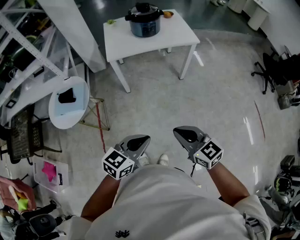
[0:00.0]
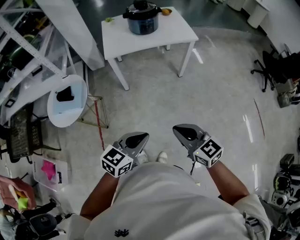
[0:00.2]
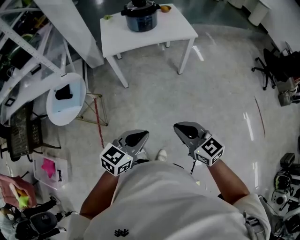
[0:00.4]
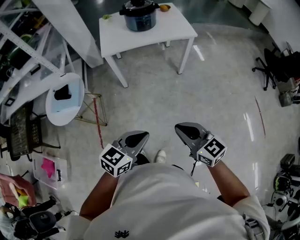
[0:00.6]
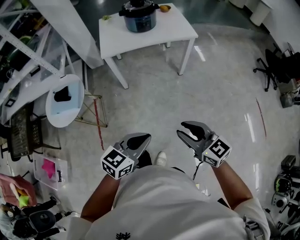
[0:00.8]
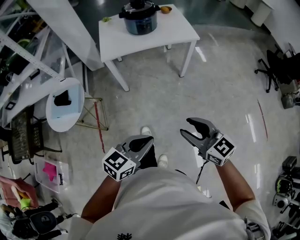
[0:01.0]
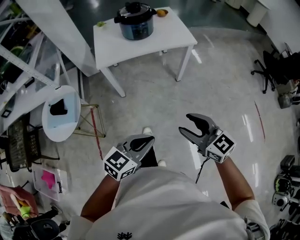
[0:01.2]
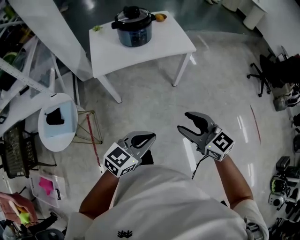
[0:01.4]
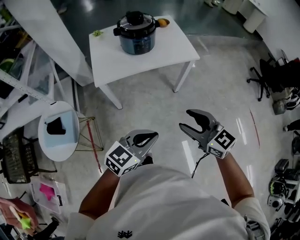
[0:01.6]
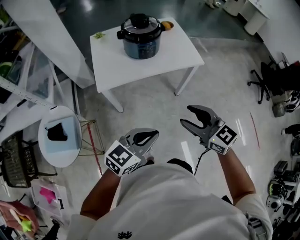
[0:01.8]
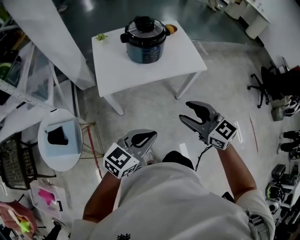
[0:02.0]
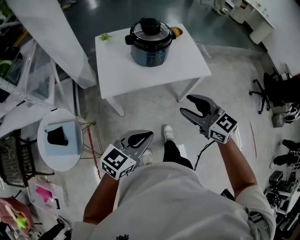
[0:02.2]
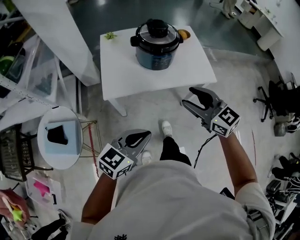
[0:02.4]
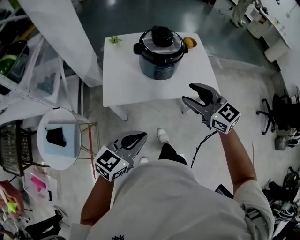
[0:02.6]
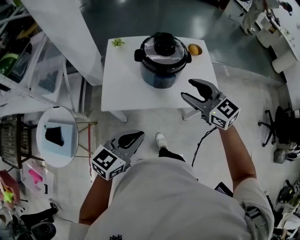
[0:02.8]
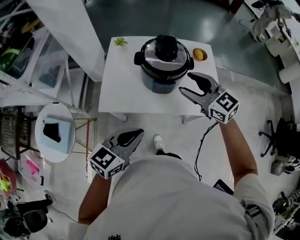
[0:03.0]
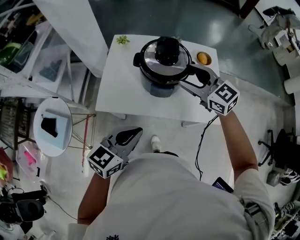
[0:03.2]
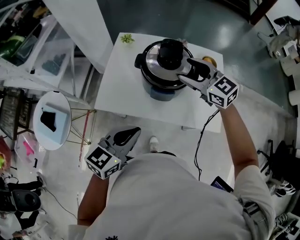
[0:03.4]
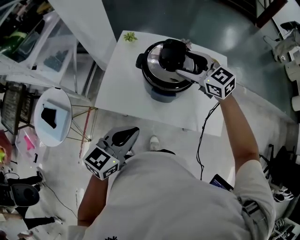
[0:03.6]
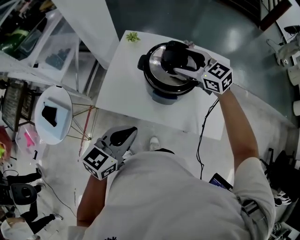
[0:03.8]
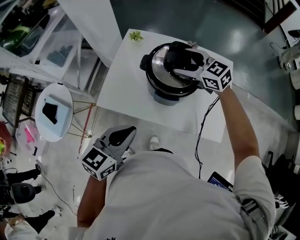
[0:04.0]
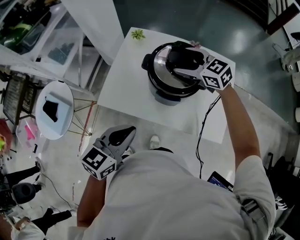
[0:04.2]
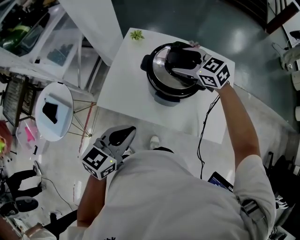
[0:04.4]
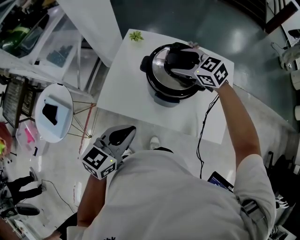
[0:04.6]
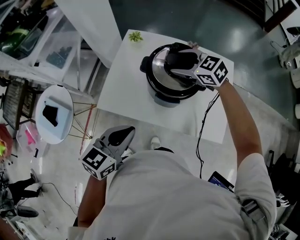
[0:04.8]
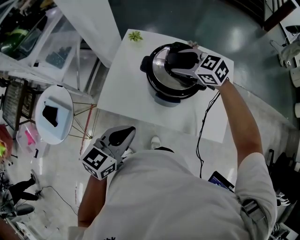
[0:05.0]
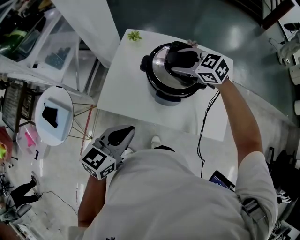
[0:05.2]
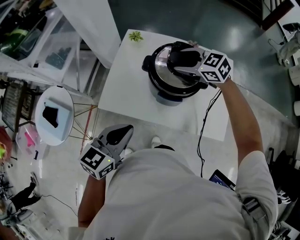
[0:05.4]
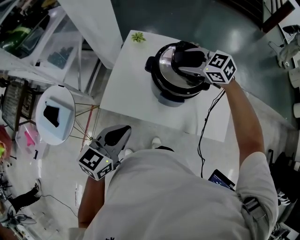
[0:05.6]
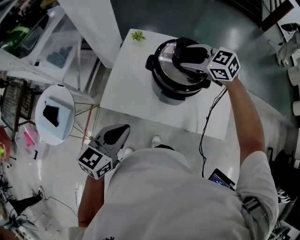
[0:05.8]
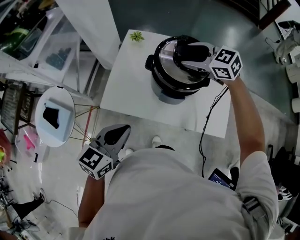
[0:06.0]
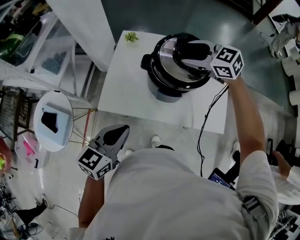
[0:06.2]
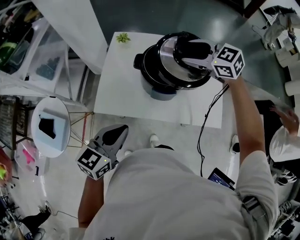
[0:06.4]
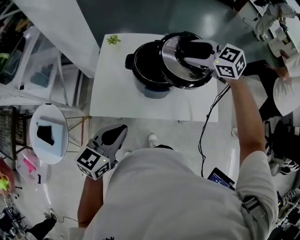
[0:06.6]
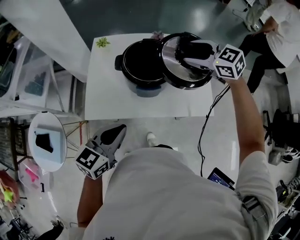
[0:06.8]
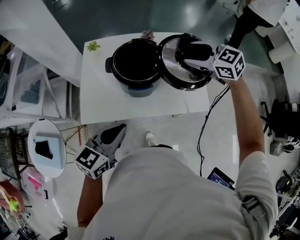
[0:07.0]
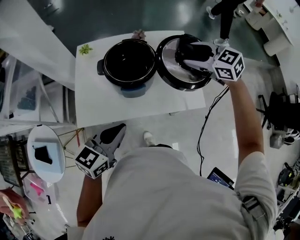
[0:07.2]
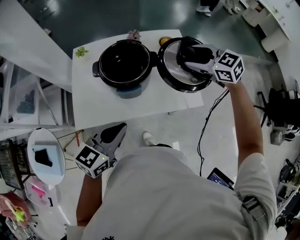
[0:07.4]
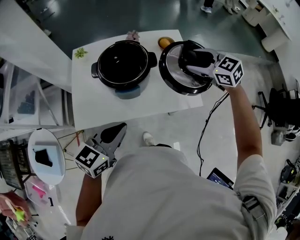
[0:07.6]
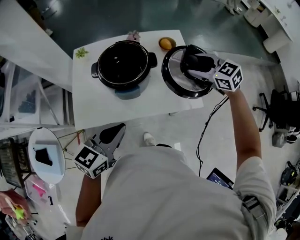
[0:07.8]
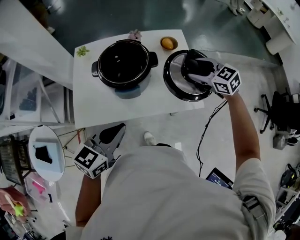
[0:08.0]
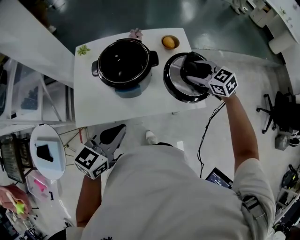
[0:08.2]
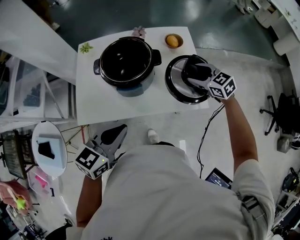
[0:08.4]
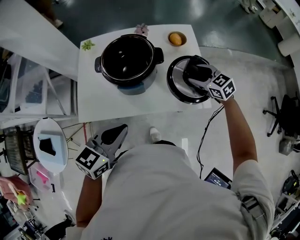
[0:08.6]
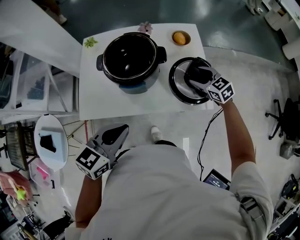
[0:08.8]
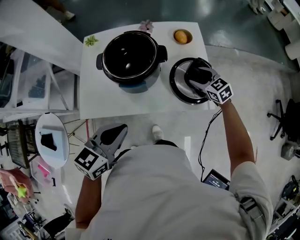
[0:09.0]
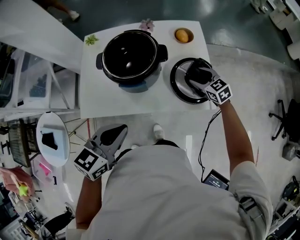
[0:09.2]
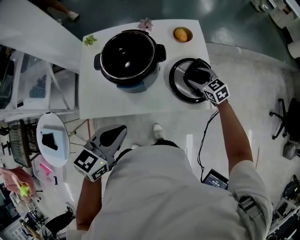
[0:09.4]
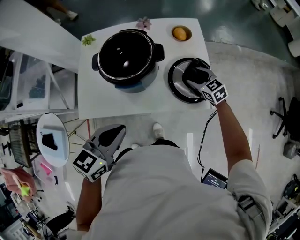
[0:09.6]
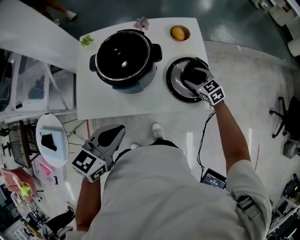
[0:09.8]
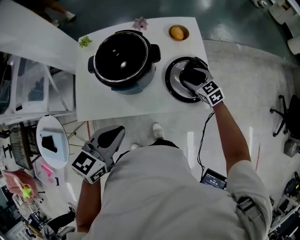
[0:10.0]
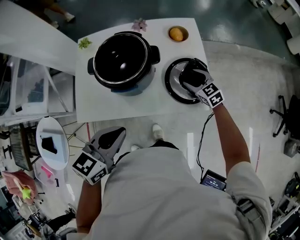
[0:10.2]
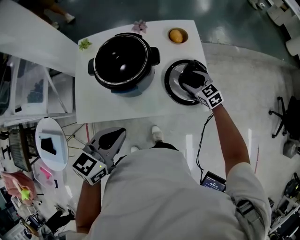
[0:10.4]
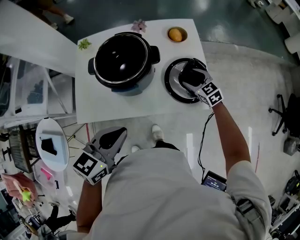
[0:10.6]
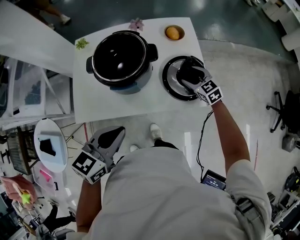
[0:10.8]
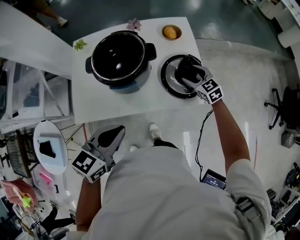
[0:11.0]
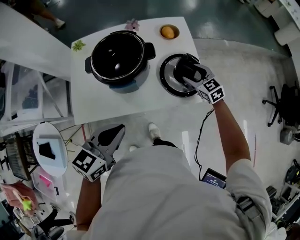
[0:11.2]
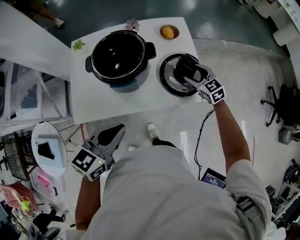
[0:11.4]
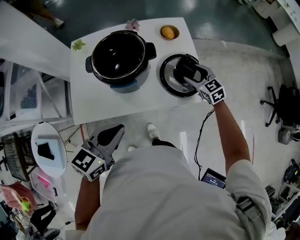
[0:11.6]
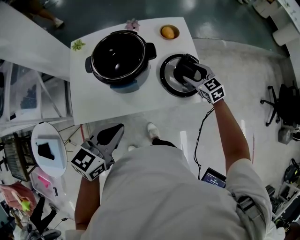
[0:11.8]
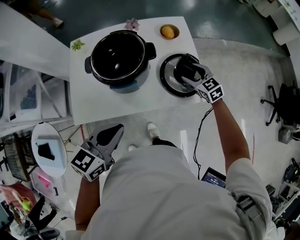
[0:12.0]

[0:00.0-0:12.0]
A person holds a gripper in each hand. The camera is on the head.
0:00.0 to 0:01.6: The grippers both shift forward by roughly 25 cm. The right gripper opens up.
0:01.6 to 0:03.0: Both grippers travel together forward, some 40 cm. The right gripper changes its angle by some 20 degrees. The left gripper rotates roughly 30 degrees.
0:03.0 to 0:04.4: The right gripper heads forward, covering approximately 20 cm, and turns by about 20 degrees. Meanwhile the left gripper shifts approximately 10 cm forward.
0:04.4 to 0:06.0: The left gripper is displaced to the left by approximately 5 cm.
0:06.0 to 0:07.6: The left gripper moves roughly 10 cm, and turns by roughly 30 degrees. Meanwhile the right gripper moves roughly 30 cm, and turns by about 30 degrees.
0:07.6 to 0:09.0: The right gripper moves downward, approximately 20 cm.
0:09.0 to 0:10.4: The right gripper travels downward by about 5 cm.
0:10.4 to 0:12.0: The grippers stay close to where they were, moving slightly.

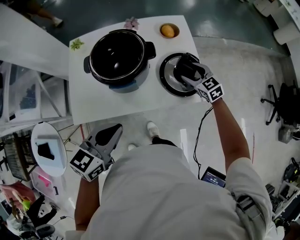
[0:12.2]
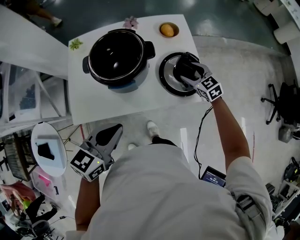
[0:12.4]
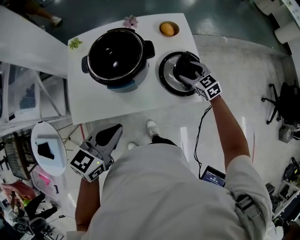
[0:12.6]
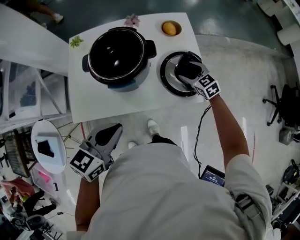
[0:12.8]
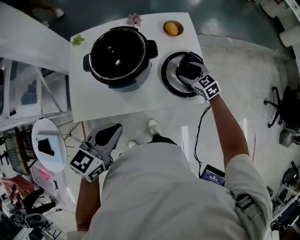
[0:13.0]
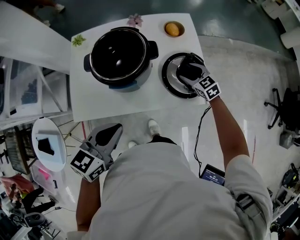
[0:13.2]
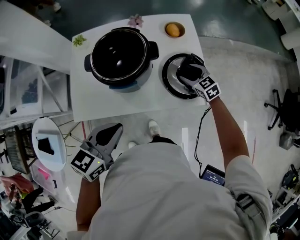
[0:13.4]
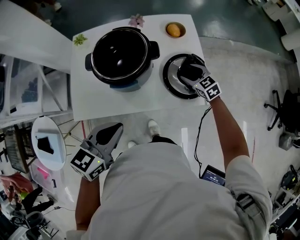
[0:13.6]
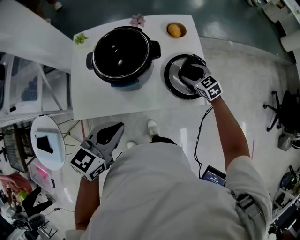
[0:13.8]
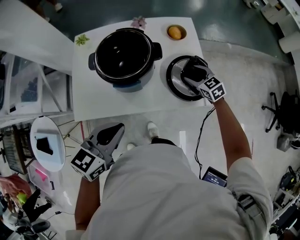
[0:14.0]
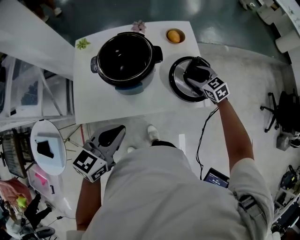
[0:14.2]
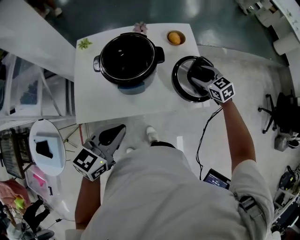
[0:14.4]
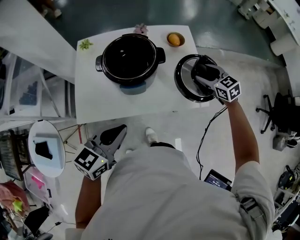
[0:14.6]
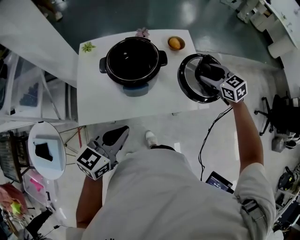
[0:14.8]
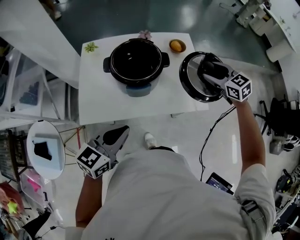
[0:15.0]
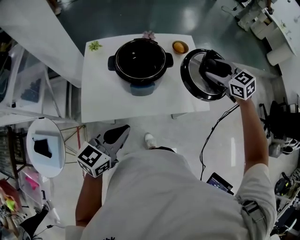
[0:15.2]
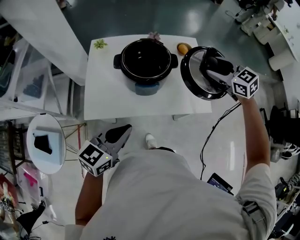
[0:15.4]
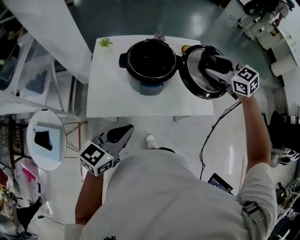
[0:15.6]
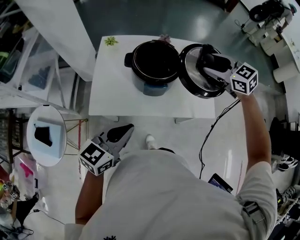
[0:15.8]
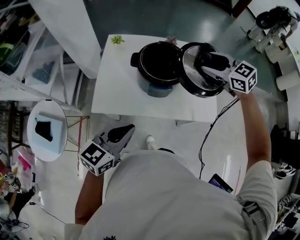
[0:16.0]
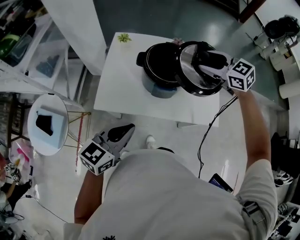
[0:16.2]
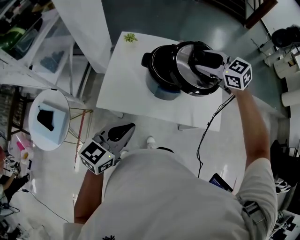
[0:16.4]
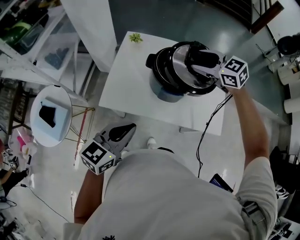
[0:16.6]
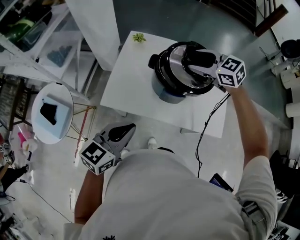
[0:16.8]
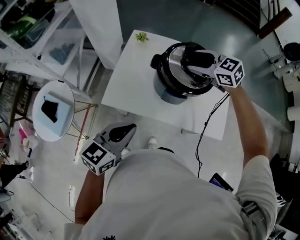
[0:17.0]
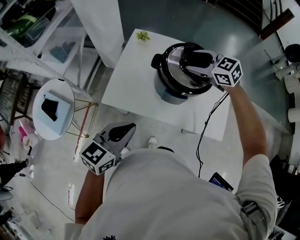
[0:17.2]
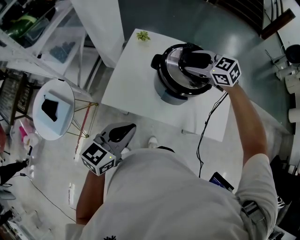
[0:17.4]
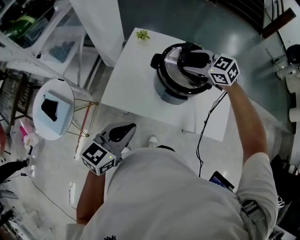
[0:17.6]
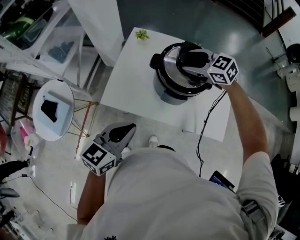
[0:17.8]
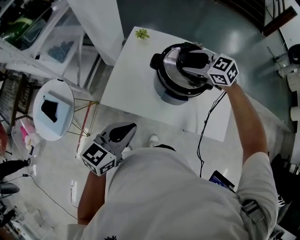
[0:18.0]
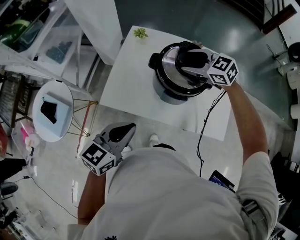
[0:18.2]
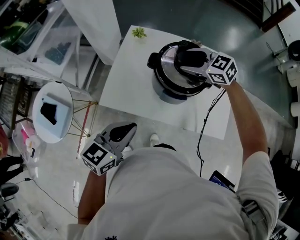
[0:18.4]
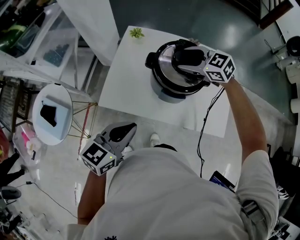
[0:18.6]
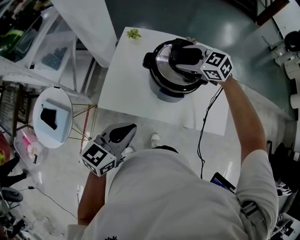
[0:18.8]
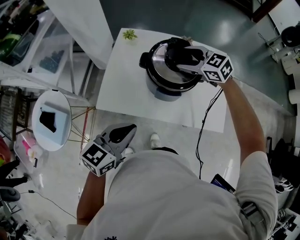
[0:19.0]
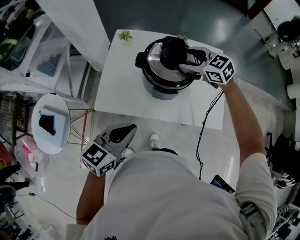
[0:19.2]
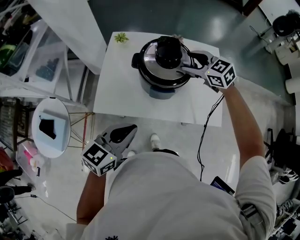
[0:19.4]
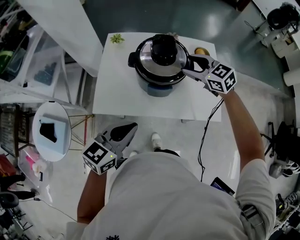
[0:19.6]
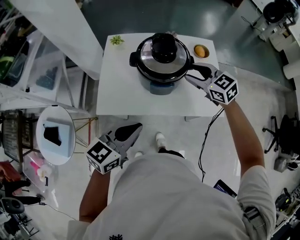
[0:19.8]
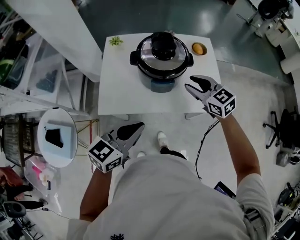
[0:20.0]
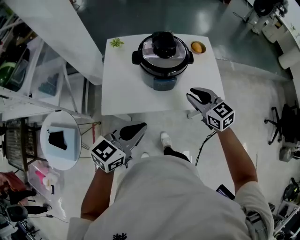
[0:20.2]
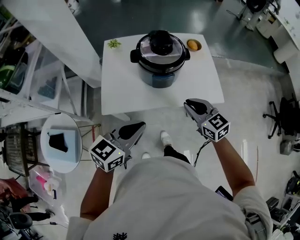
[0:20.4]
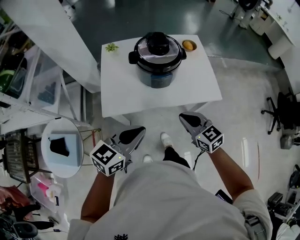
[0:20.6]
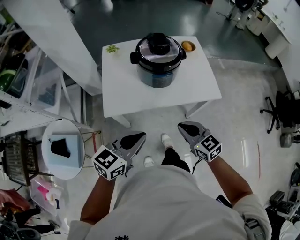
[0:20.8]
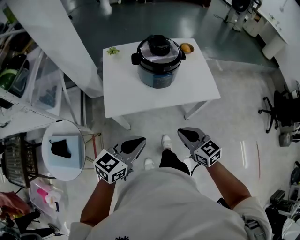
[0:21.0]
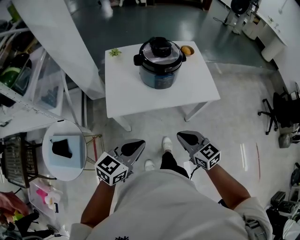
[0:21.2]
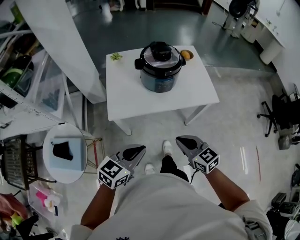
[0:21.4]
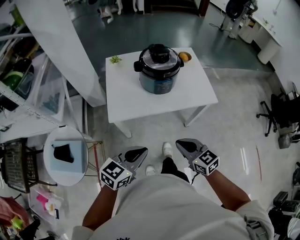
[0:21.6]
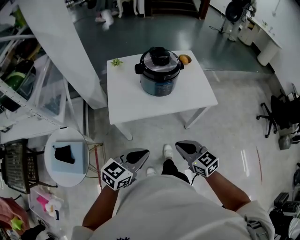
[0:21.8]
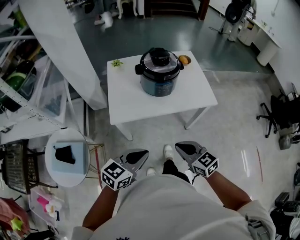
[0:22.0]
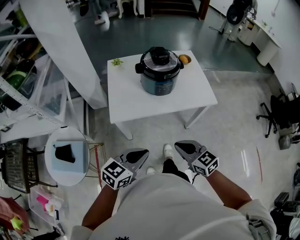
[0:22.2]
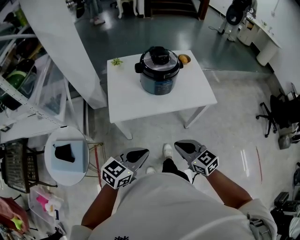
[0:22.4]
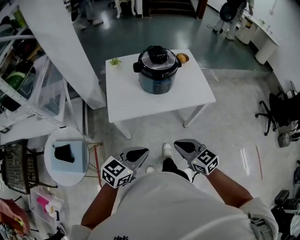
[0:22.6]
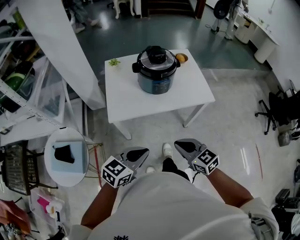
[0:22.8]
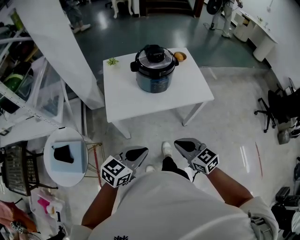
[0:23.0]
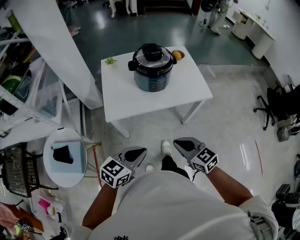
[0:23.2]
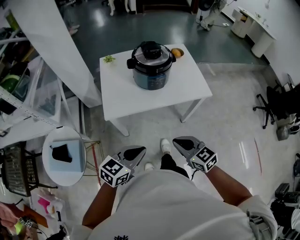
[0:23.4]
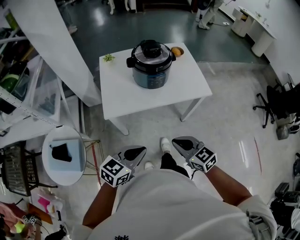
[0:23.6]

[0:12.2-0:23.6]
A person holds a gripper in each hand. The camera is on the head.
0:12.2 to 0:13.6: The grippers move only a little.
0:13.6 to 0:15.0: The right gripper travels upward by roughly 20 cm. The left gripper changes place by approximately 5 cm.
0:15.0 to 0:16.4: The right gripper heads to the left, covering approximately 25 cm, and changes its angle by some 30 degrees. Meanwhile the left gripper heads to the left, covering some 5 cm.
0:16.4 to 0:17.8: The right gripper goes approximately 10 cm downward, to the left and forward.
0:17.8 to 0:19.4: The right gripper heads to the right, covering some 10 cm.
0:19.4 to 0:20.8: The right gripper travels backward by roughly 40 cm, turns by approximately 30 degrees, and closes. The left gripper heads backward, covering some 15 cm.
0:20.8 to 0:22.2: Both grippers move backward, some 10 cm.
0:22.2 to 0:23.6: The grippers make only small movements.
